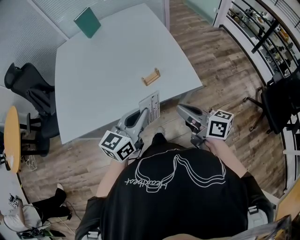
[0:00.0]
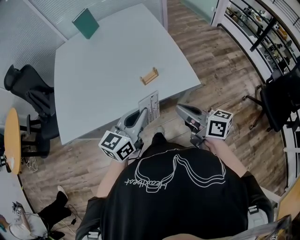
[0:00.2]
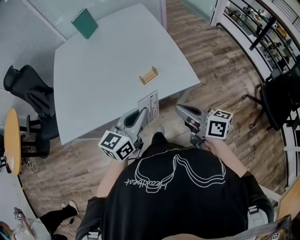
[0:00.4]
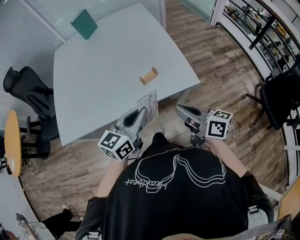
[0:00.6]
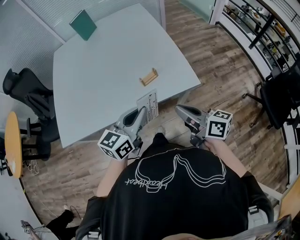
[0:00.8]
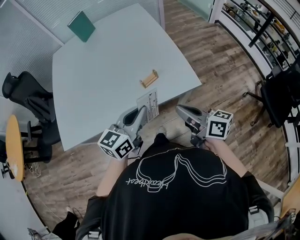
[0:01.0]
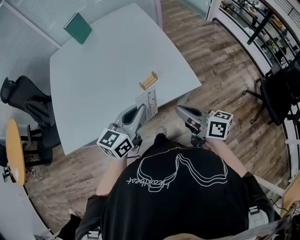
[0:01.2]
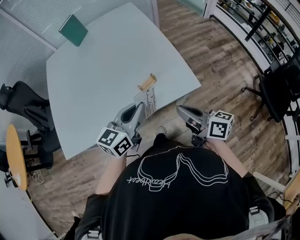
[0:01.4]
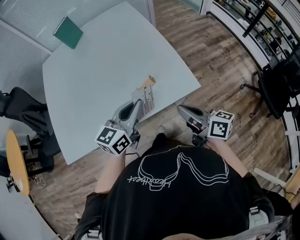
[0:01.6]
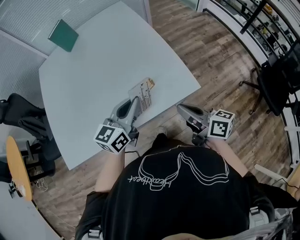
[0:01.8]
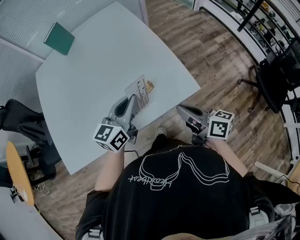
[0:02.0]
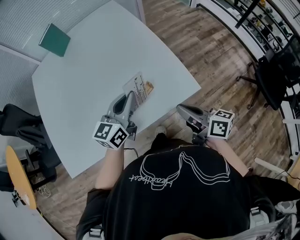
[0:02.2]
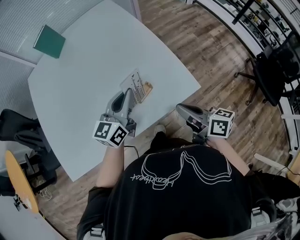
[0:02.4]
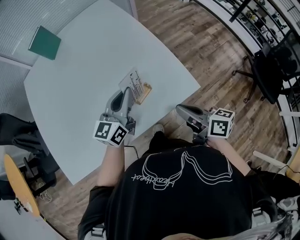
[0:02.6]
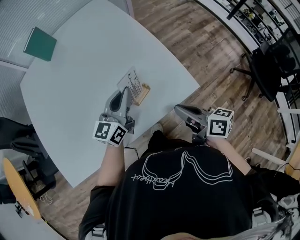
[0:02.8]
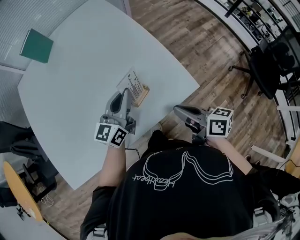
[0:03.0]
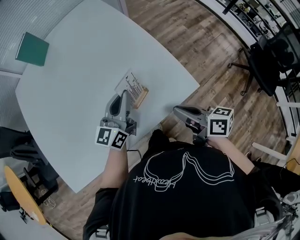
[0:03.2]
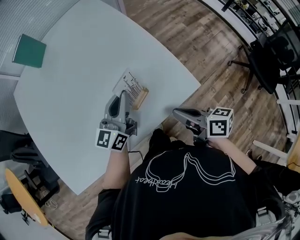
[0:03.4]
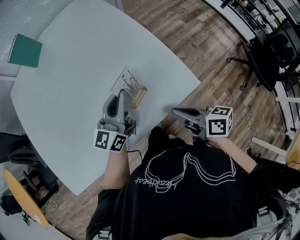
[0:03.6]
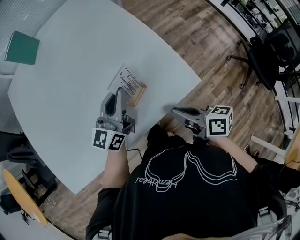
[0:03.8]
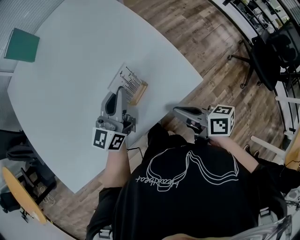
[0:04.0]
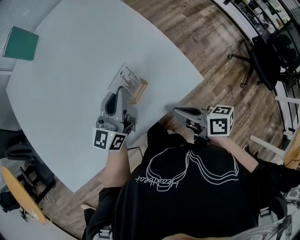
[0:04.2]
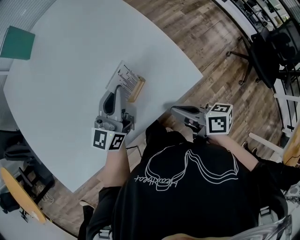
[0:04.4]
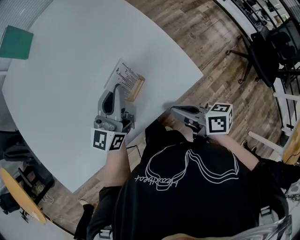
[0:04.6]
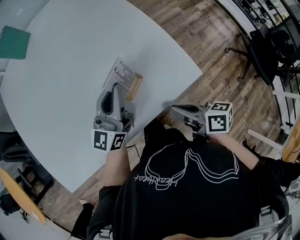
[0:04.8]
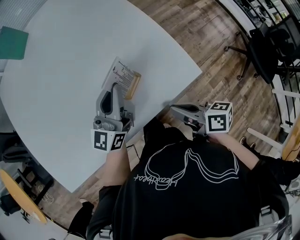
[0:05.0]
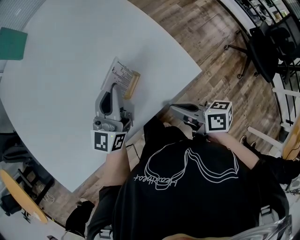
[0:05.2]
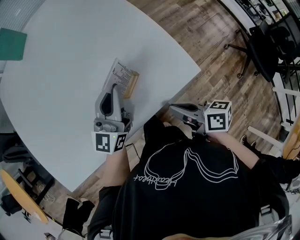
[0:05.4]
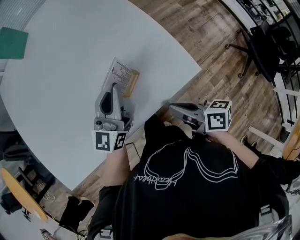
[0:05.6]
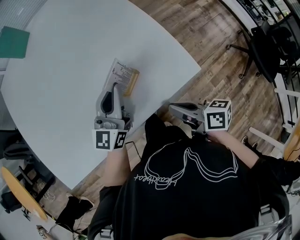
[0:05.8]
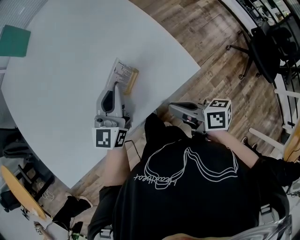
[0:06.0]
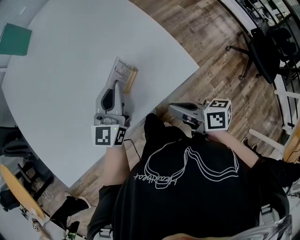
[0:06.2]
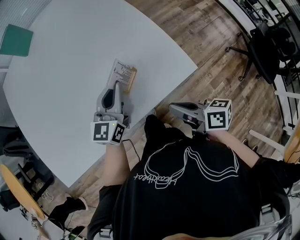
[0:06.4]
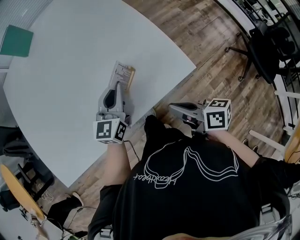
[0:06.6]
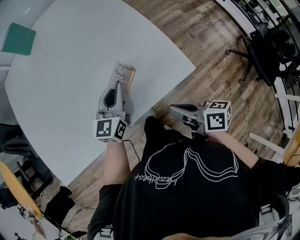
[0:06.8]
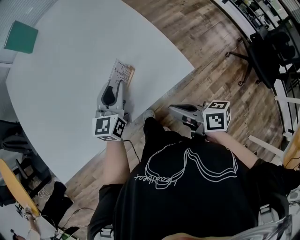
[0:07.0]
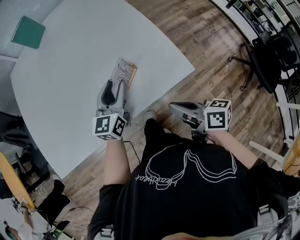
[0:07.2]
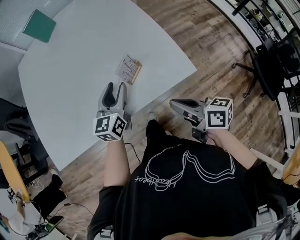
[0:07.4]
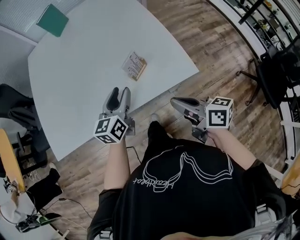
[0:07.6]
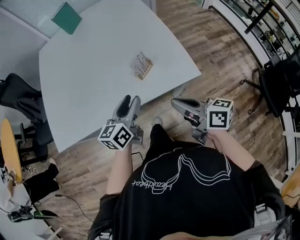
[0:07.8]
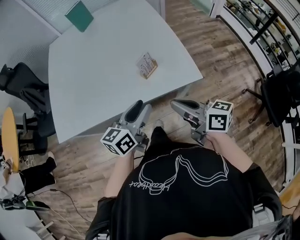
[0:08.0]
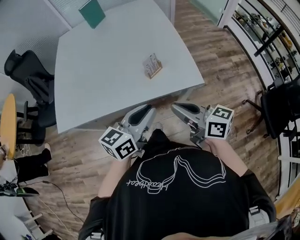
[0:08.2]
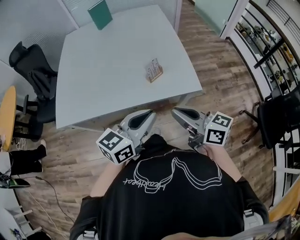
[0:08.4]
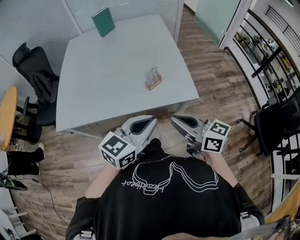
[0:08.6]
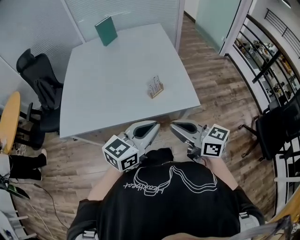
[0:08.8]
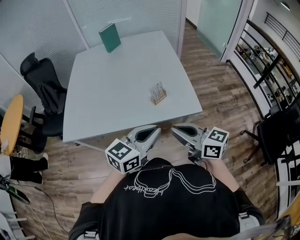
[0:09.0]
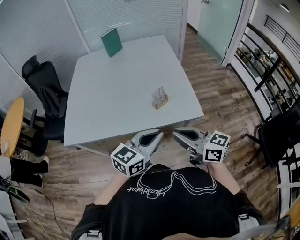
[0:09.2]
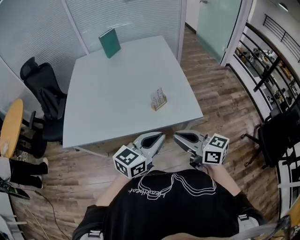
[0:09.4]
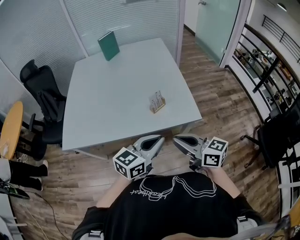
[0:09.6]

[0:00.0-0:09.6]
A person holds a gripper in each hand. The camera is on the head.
0.0 to 1.6 s: The left gripper goes approximately 10 cm forward, while the right gripper heads forward, covering approximately 5 cm.
1.6 to 3.2 s: The right gripper shifts roughly 10 cm forward and downward, while the left gripper shifts approximately 15 cm forward and downward.
3.2 to 4.8 s: The right gripper travels downward by about 5 cm.
4.8 to 6.4 s: The grippers stay close to where they were, moving slightly.
6.4 to 8.0 s: The right gripper travels upward and backward by approximately 15 cm, and changes its angle by some 30 degrees; the left gripper heads backward, covering approximately 20 cm, turns by roughly 20 degrees, and opens.
8.0 to 9.6 s: The right gripper shifts approximately 10 cm backward; the left gripper is displaced backward and upward by about 10 cm, turns by some 20 degrees, and closes up.

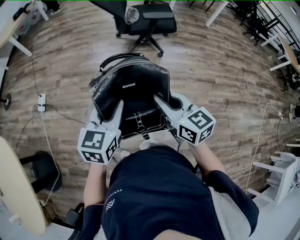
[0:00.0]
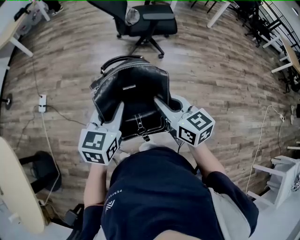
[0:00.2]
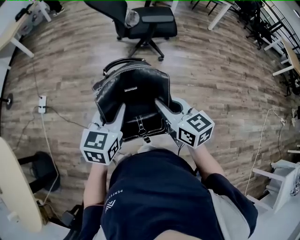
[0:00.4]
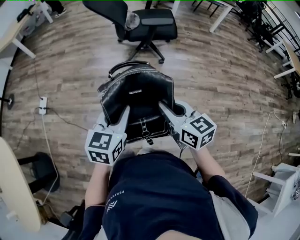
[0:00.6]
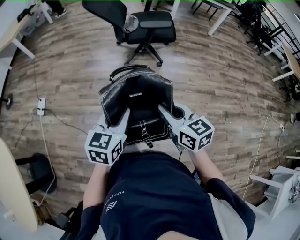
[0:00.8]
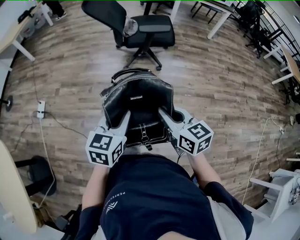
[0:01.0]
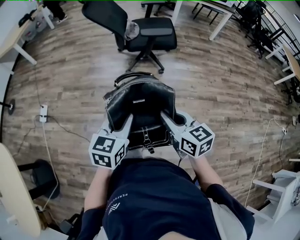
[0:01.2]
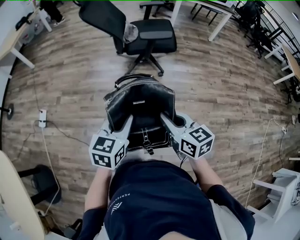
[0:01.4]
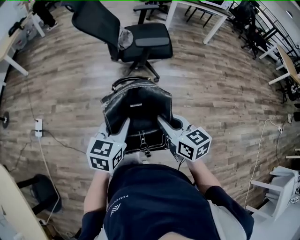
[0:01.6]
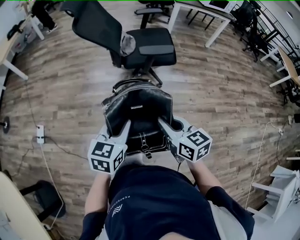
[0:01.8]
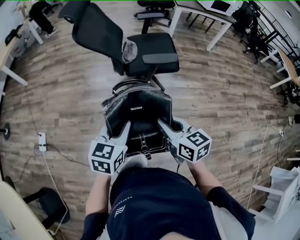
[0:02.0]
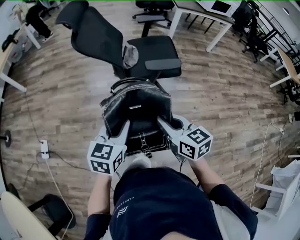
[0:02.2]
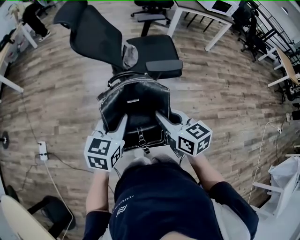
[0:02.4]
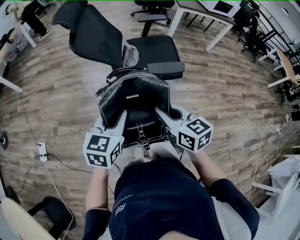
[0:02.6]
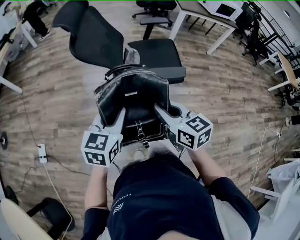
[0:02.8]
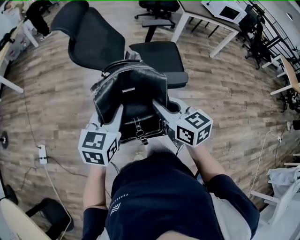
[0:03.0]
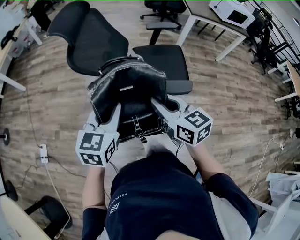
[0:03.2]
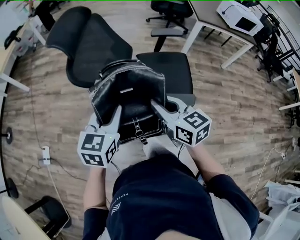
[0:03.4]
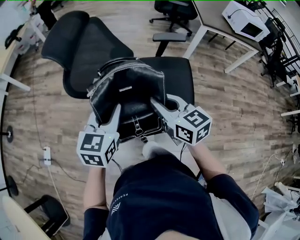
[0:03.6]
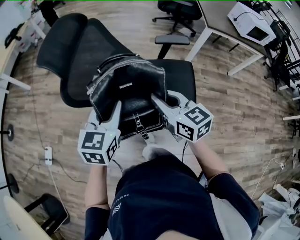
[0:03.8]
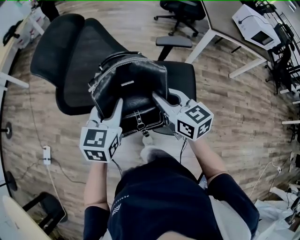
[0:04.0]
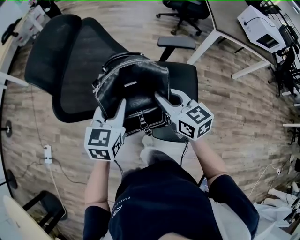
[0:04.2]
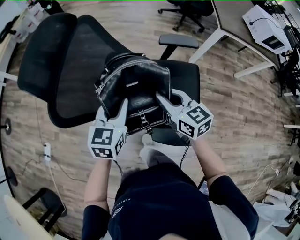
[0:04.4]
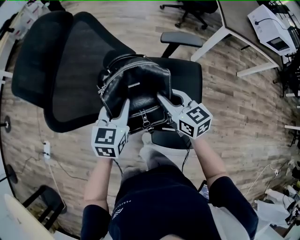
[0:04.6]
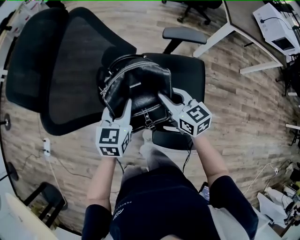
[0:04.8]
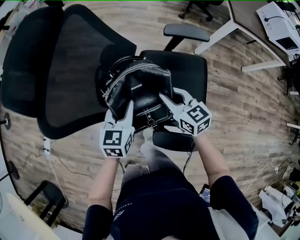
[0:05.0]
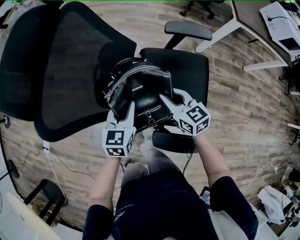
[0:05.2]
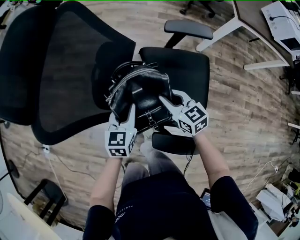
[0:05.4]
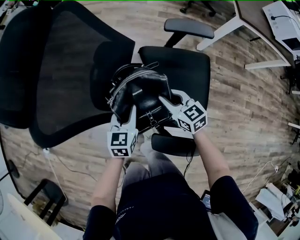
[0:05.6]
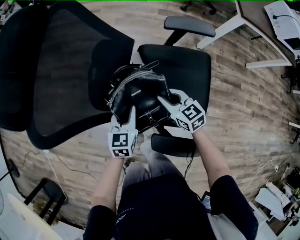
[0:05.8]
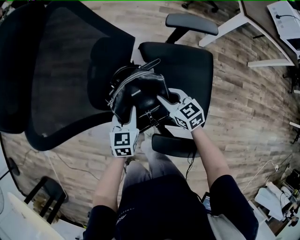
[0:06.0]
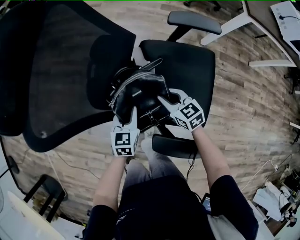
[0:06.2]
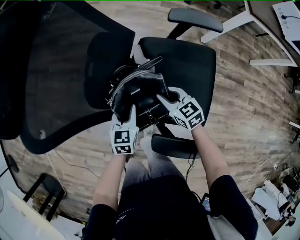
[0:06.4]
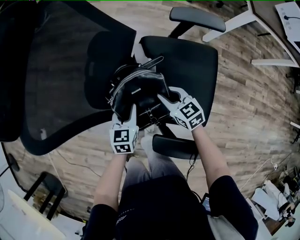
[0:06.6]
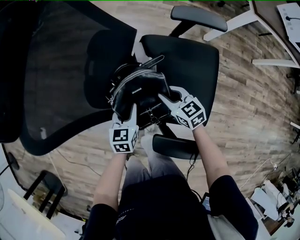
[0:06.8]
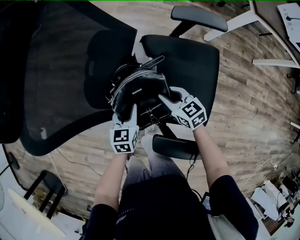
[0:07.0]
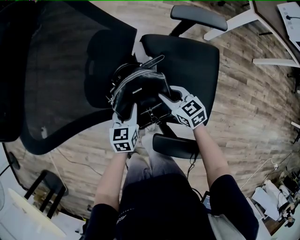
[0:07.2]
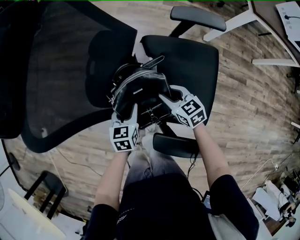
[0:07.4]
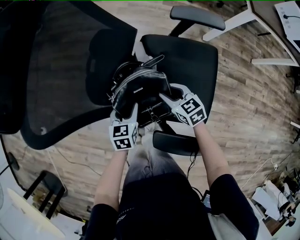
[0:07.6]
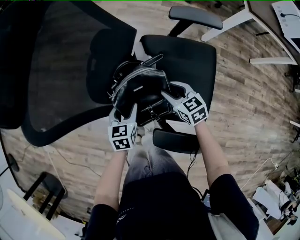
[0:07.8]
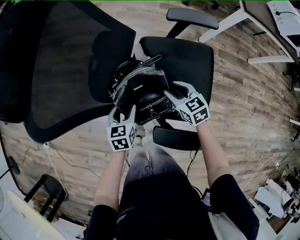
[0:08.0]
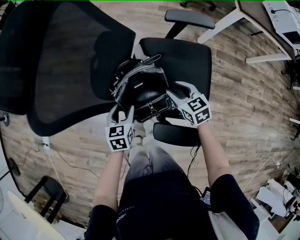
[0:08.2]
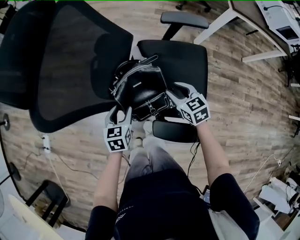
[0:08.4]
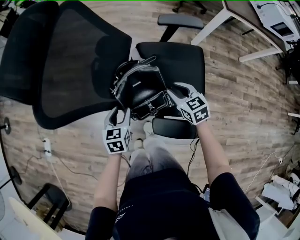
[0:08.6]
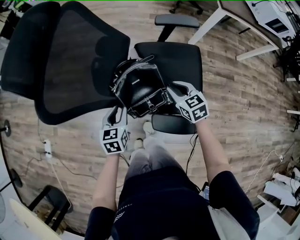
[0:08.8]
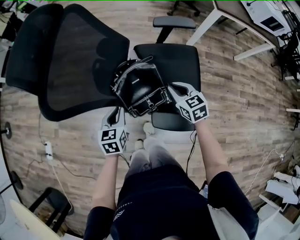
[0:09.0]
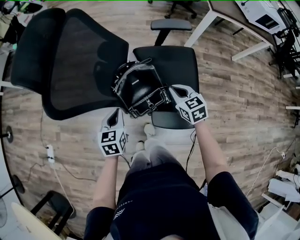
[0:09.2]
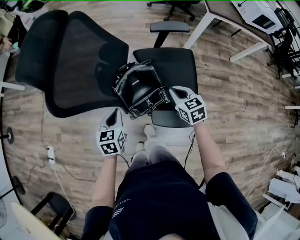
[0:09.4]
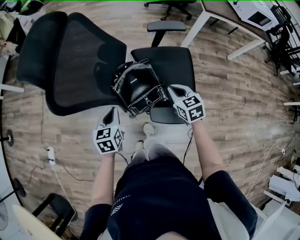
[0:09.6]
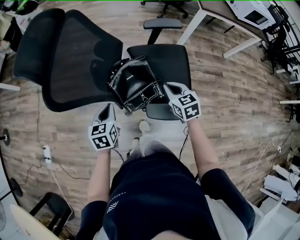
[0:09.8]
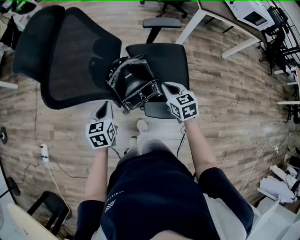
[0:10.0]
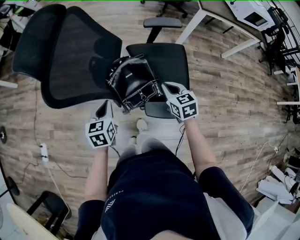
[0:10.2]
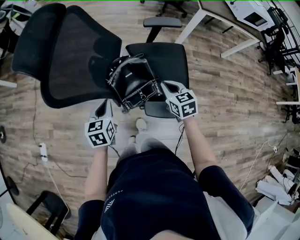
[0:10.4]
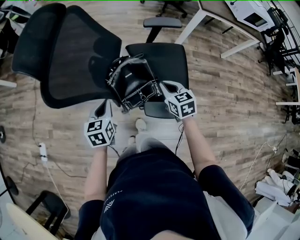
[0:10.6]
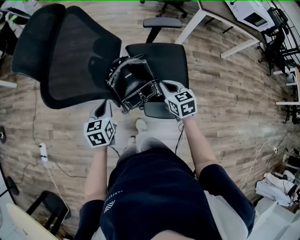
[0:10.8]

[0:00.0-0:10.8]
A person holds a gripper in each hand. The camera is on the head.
0.0 to 1.6 s: The grippers both shift forward and to the right by some 20 cm.
1.6 to 3.0 s: The two grippers go some 35 cm forward.
3.0 to 4.6 s: The grippers both shift forward by some 35 cm.
4.6 to 6.2 s: The grippers both shift downward by approximately 20 cm.
6.2 to 7.8 s: The right gripper opens, while the left gripper opens up.
7.8 to 9.2 s: The right gripper goes some 15 cm upward and backward, and closes up. The left gripper goes about 15 cm upward, backward and to the left, and closes its fingers.
9.2 to 10.8 s: The grippers make only small movements.

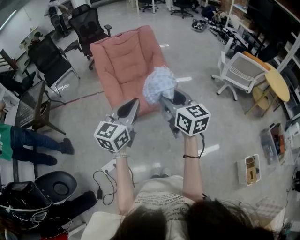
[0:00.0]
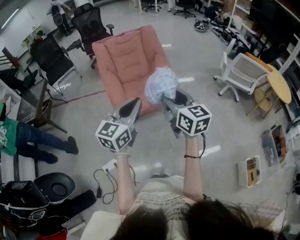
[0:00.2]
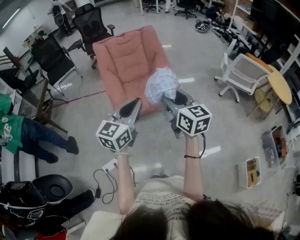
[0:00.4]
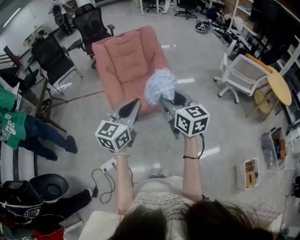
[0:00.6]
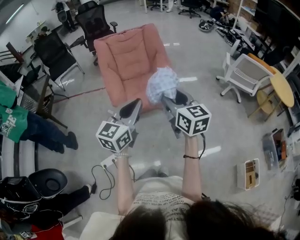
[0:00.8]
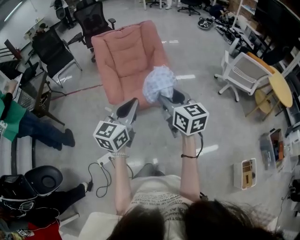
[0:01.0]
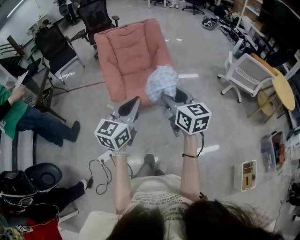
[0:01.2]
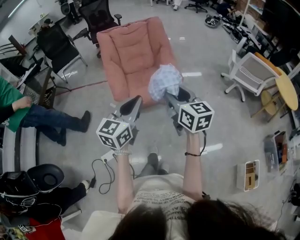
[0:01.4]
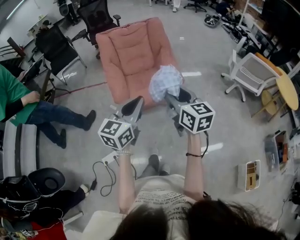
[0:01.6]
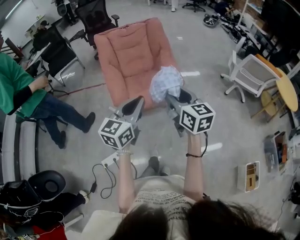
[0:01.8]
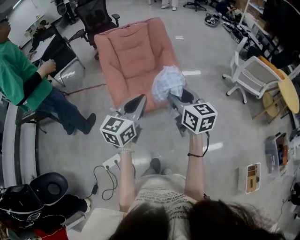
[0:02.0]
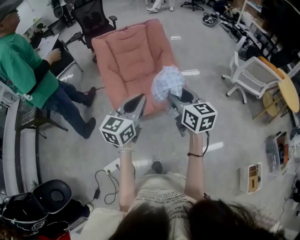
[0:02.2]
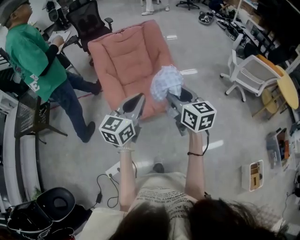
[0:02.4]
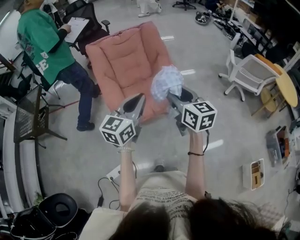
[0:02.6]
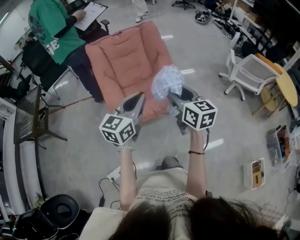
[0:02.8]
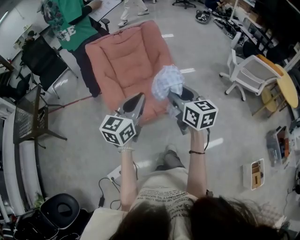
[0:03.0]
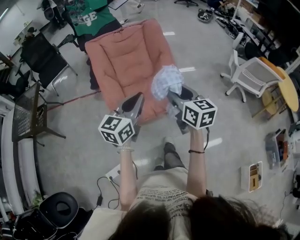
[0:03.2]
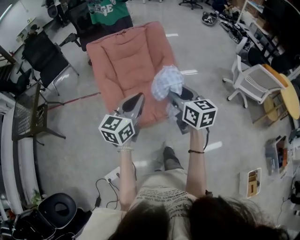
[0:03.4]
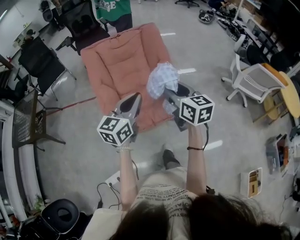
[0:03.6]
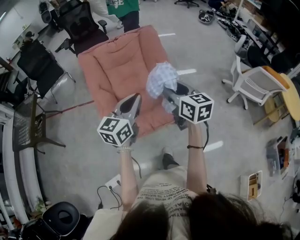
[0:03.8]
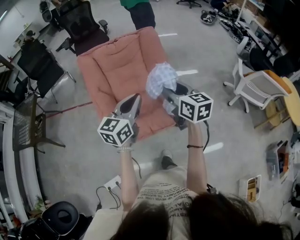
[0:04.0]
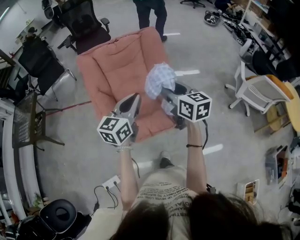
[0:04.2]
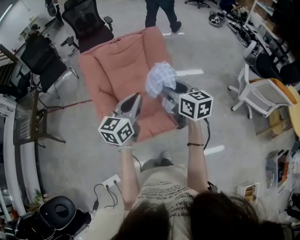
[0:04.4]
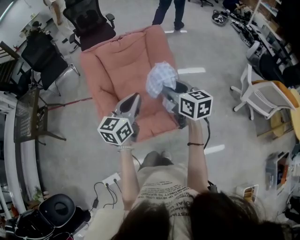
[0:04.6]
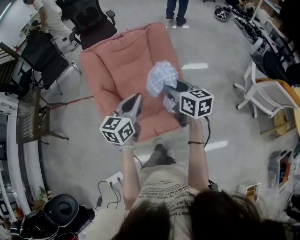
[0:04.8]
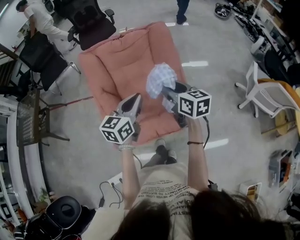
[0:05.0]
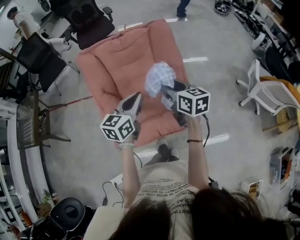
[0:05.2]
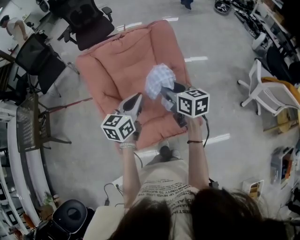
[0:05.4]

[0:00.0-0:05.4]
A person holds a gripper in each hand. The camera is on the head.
0.0 to 1.4 s: The right gripper shifts by about 5 cm.
1.4 to 2.8 s: Both grippers travel together forward, some 20 cm.
2.8 to 4.0 s: Both grippers move forward, about 20 cm.
4.0 to 5.4 s: Both grippers travel together forward and downward, approximately 20 cm.
